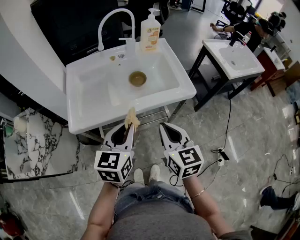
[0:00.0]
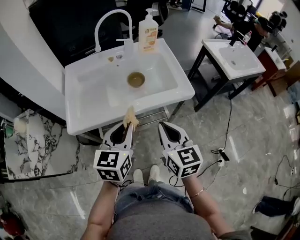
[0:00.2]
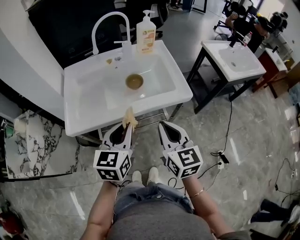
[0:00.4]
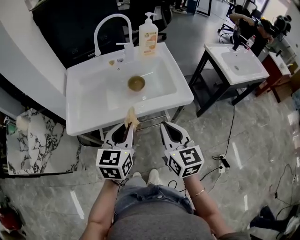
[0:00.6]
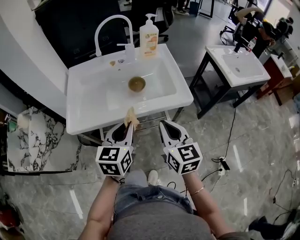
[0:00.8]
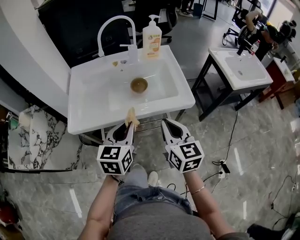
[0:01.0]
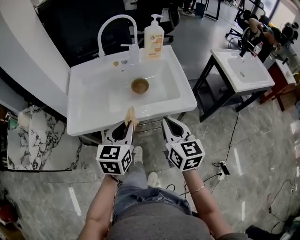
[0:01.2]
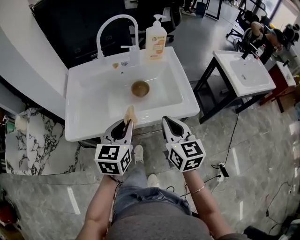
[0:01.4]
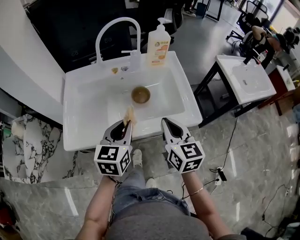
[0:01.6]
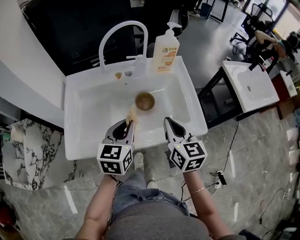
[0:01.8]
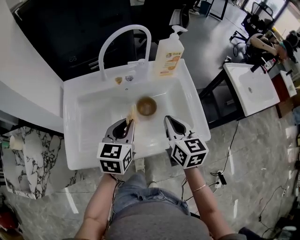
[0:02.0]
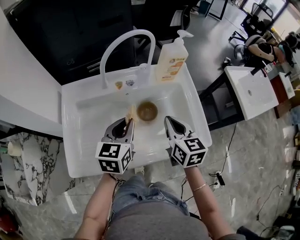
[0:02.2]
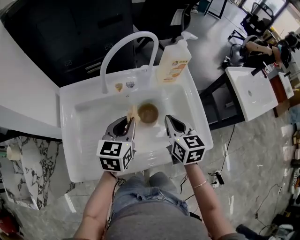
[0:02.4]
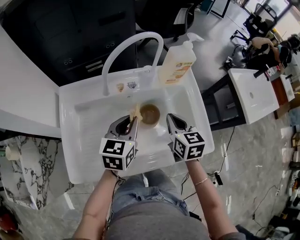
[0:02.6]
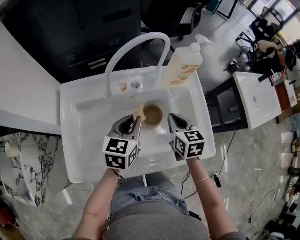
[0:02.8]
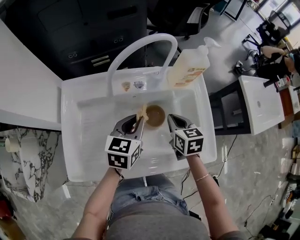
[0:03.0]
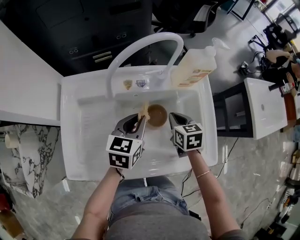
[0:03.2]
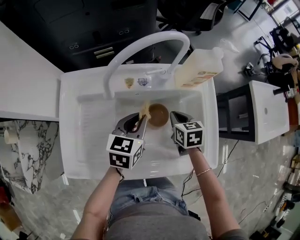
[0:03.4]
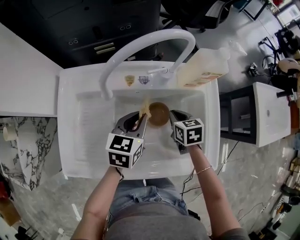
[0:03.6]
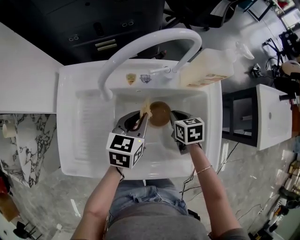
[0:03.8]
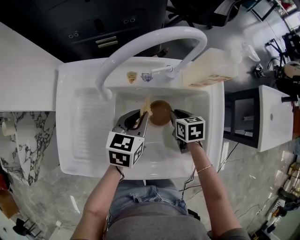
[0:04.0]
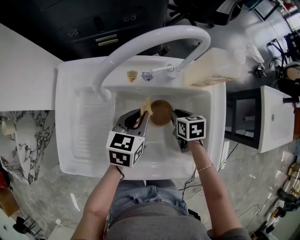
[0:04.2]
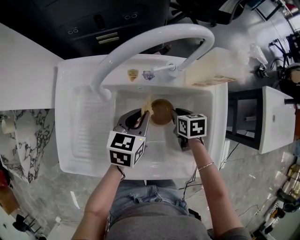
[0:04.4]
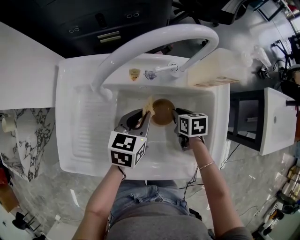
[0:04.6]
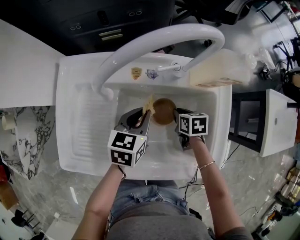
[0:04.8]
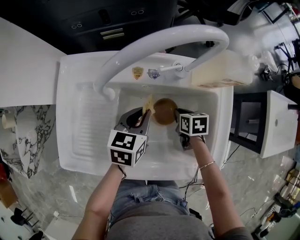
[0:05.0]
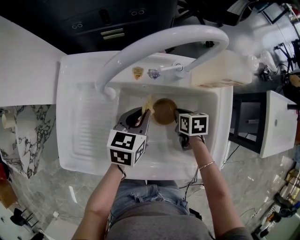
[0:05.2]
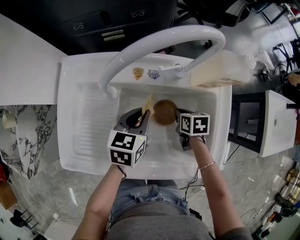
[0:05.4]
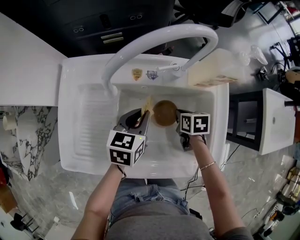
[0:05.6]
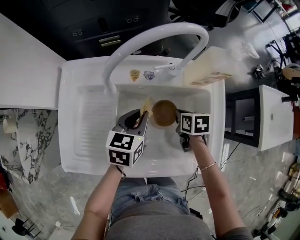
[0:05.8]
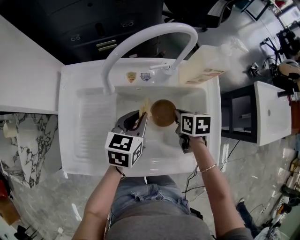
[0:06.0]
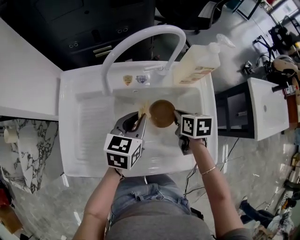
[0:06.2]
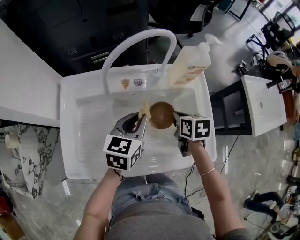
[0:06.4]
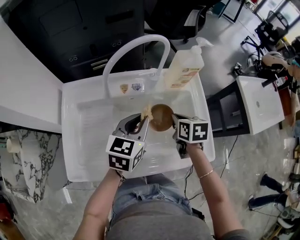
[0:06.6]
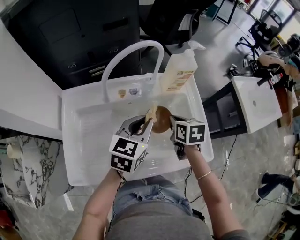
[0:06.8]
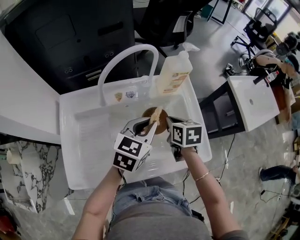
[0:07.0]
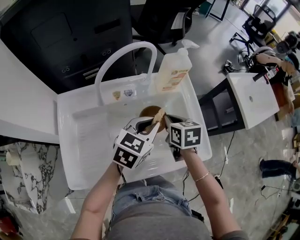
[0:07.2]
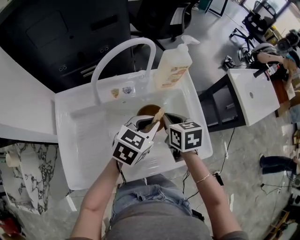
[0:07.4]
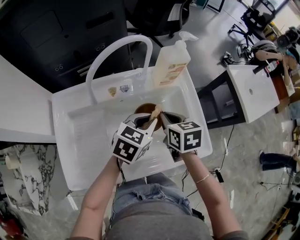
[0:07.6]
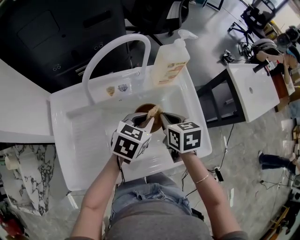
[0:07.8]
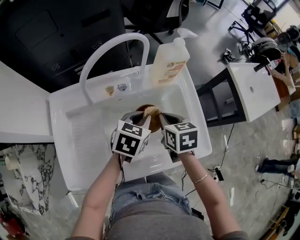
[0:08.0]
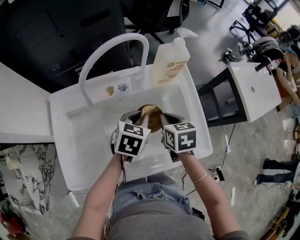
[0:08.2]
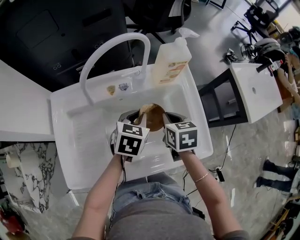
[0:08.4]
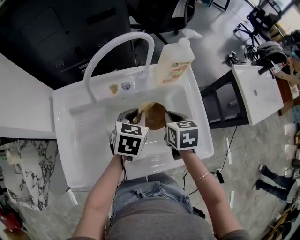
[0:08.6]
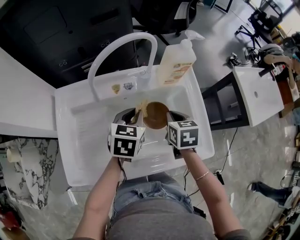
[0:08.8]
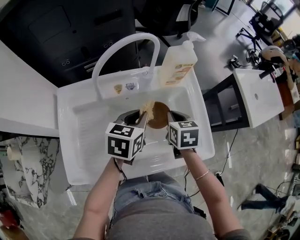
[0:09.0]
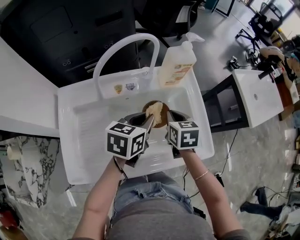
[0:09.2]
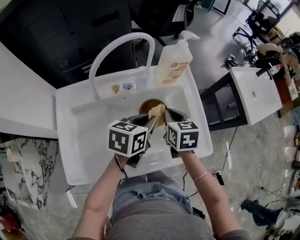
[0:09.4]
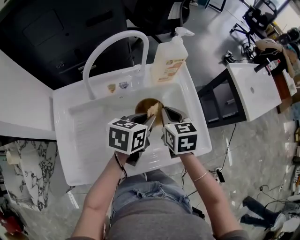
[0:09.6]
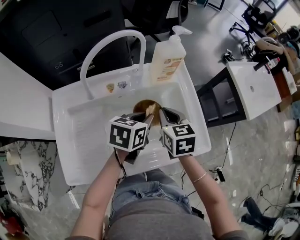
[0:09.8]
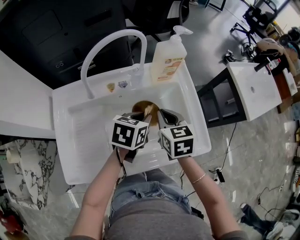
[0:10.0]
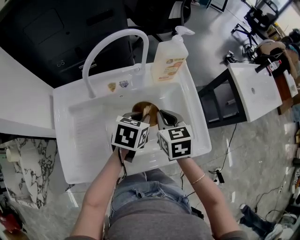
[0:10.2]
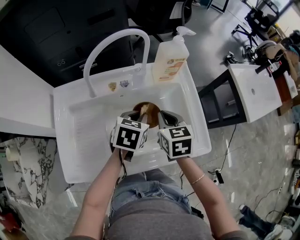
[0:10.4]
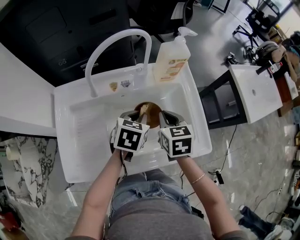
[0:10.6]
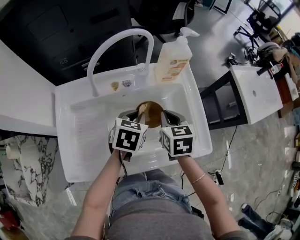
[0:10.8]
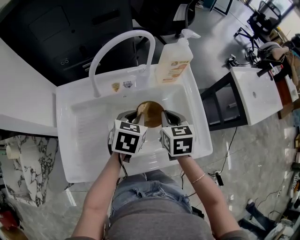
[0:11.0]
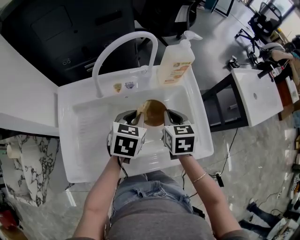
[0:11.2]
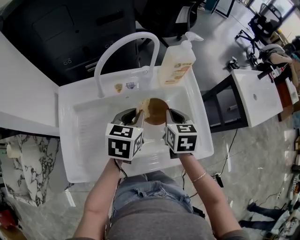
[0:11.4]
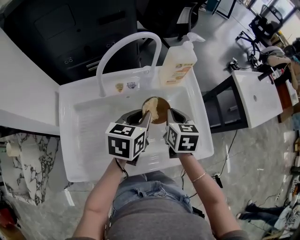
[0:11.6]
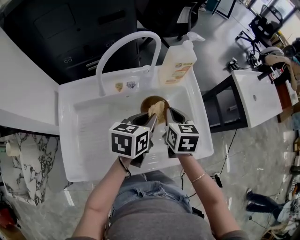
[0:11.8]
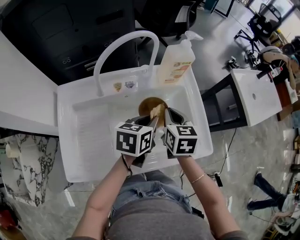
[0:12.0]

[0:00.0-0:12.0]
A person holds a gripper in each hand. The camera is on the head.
0:00.0 to 0:01.6: Both grippers move forward, some 15 cm.
0:01.6 to 0:03.0: The right gripper shifts about 25 cm forward and downward, and rotates about 20 degrees; the left gripper shifts about 20 cm forward.
0:03.0 to 0:04.4: The right gripper is displaced downward by roughly 15 cm, and changes its angle by roughly 20 degrees. The left gripper shifts some 5 cm downward.
0:04.4 to 0:06.0: The right gripper travels upward by some 5 cm.
0:06.0 to 0:07.6: The left gripper goes approximately 10 cm to the right, and rotates about 30 degrees, while the right gripper goes roughly 10 cm upward.
0:07.6 to 0:09.0: The left gripper shifts about 5 cm to the left.
0:09.0 to 0:10.4: The grippers move only a little.

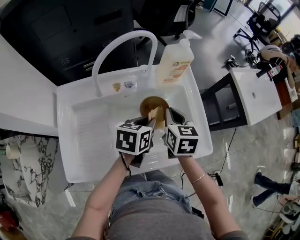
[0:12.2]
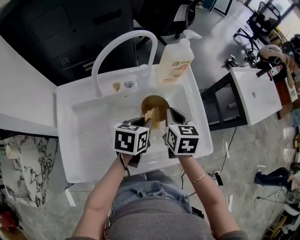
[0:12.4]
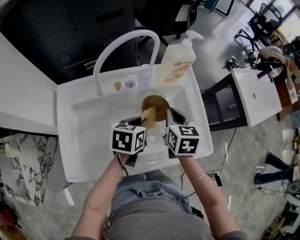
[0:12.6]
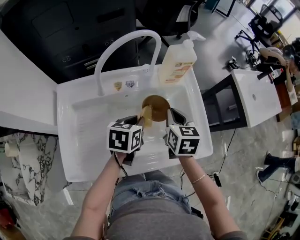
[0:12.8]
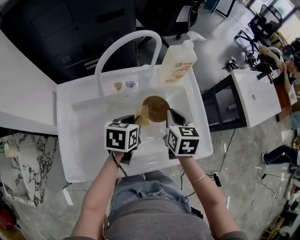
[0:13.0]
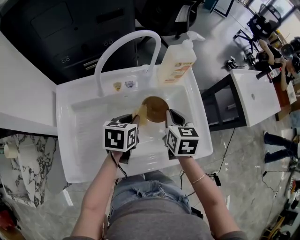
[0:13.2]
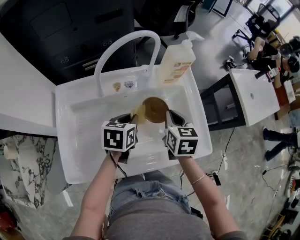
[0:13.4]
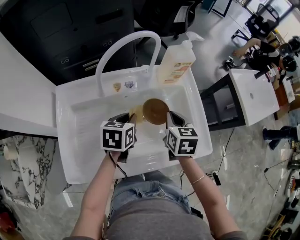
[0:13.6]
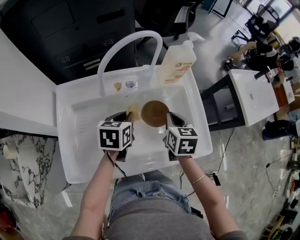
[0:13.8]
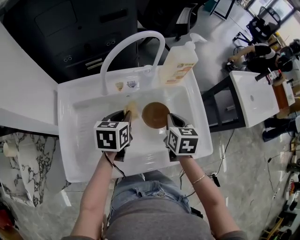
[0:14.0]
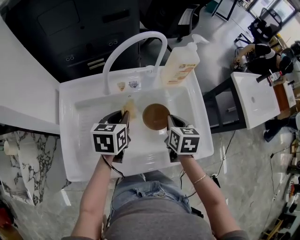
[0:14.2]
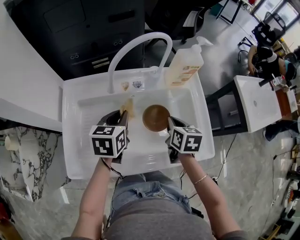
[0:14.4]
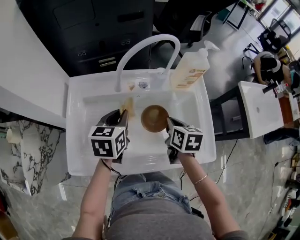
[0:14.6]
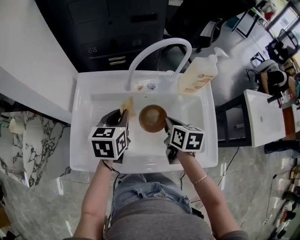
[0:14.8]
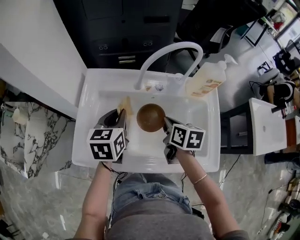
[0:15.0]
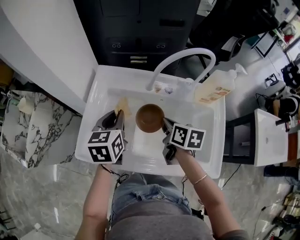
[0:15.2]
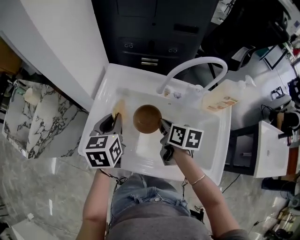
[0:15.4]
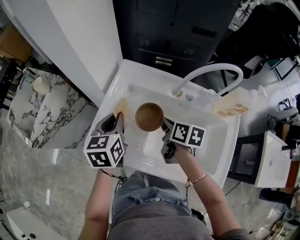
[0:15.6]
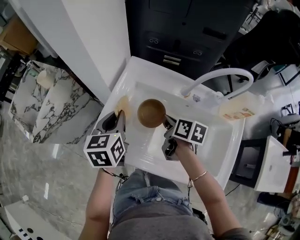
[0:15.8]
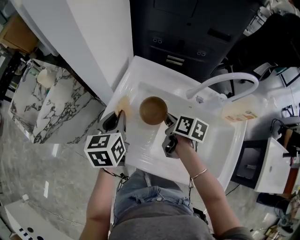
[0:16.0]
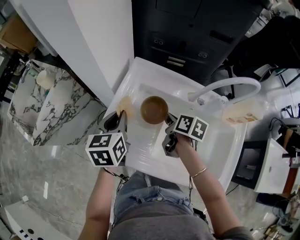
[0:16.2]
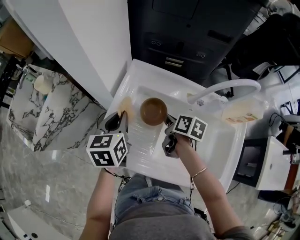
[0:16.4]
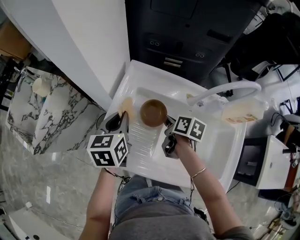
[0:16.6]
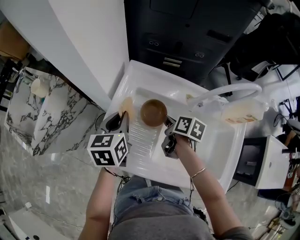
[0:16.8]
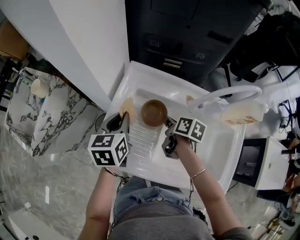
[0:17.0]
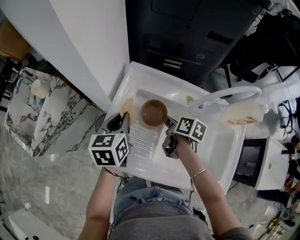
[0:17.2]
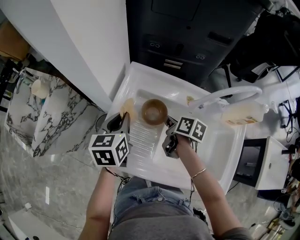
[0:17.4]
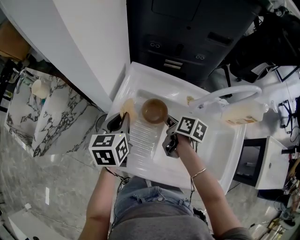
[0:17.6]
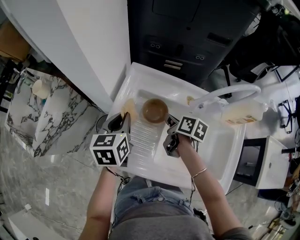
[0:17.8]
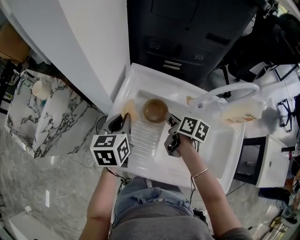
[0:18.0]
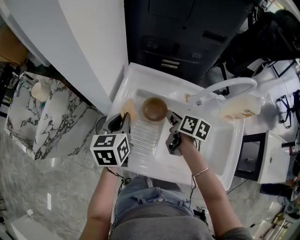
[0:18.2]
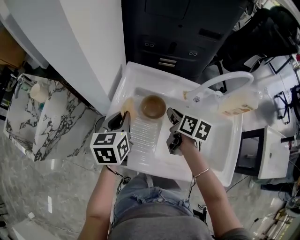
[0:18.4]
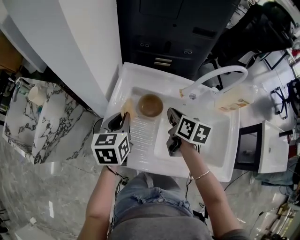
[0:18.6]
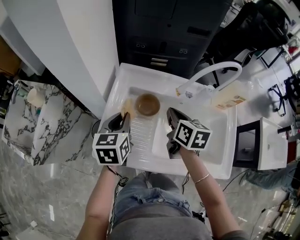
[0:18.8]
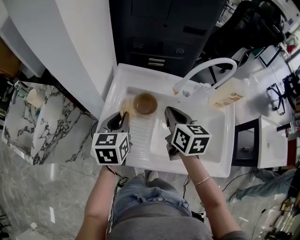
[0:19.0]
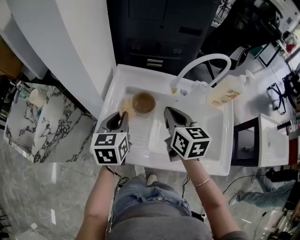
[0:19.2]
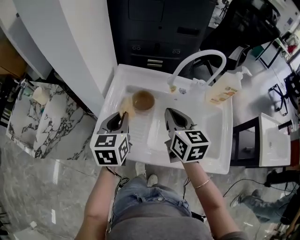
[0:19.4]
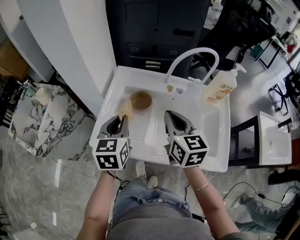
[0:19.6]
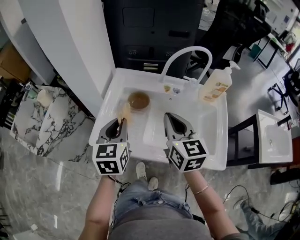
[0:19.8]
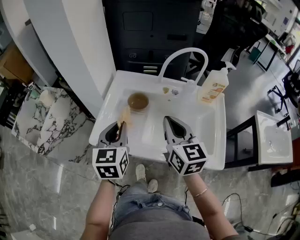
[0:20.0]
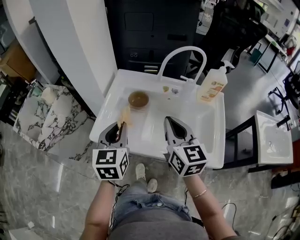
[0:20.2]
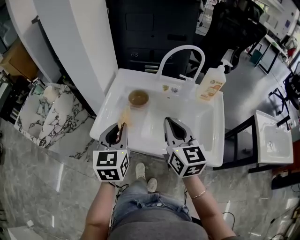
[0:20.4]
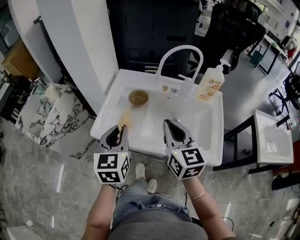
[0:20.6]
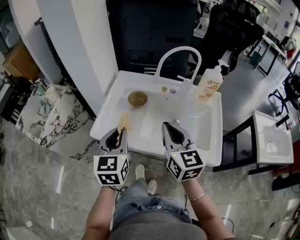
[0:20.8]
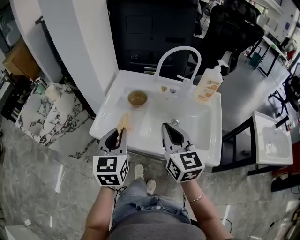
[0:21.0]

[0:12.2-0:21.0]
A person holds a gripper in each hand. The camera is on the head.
0:12.2 to 0:13.6: The left gripper travels to the left by roughly 10 cm.
0:13.6 to 0:15.2: The left gripper ends up roughly 20 cm from where it was, and rotates about 40 degrees; the right gripper moves roughly 15 cm, and changes its angle by some 30 degrees.
0:15.2 to 0:16.6: The right gripper shifts roughly 15 cm to the left, forward and downward, while the left gripper travels to the left by approximately 10 cm.
0:16.6 to 0:18.0: The grippers make only small movements.
0:18.0 to 0:19.6: The right gripper goes about 20 cm upward and backward, and turns by roughly 50 degrees. The left gripper heads backward and upward, covering roughly 10 cm.
0:19.6 to 0:21.0: Both grippers move backward, approximately 15 cm.

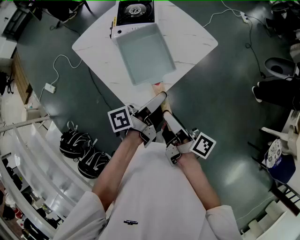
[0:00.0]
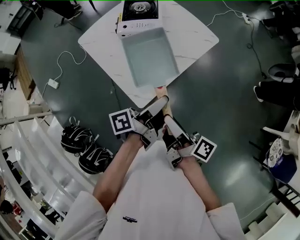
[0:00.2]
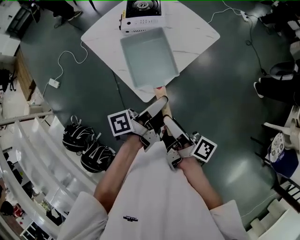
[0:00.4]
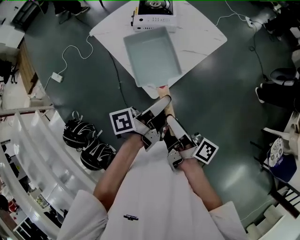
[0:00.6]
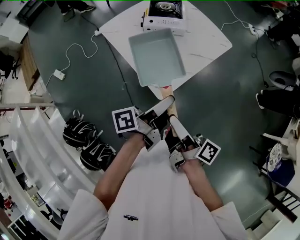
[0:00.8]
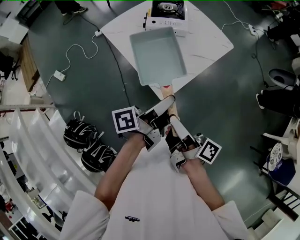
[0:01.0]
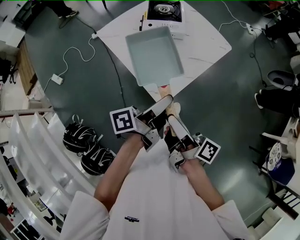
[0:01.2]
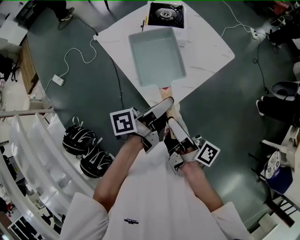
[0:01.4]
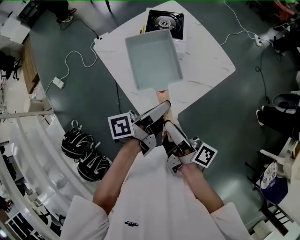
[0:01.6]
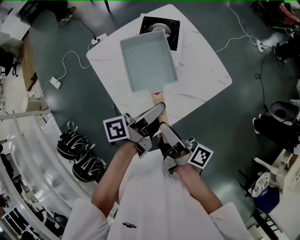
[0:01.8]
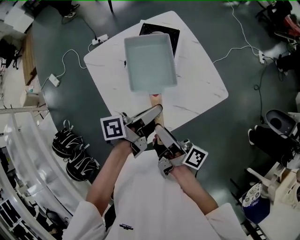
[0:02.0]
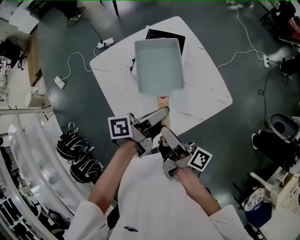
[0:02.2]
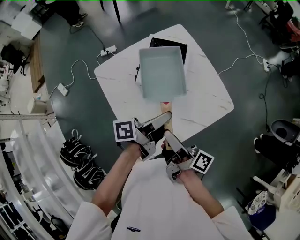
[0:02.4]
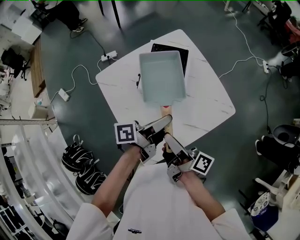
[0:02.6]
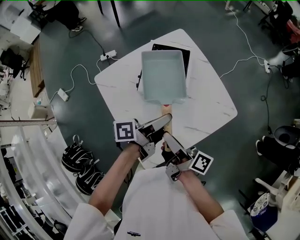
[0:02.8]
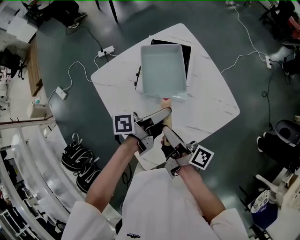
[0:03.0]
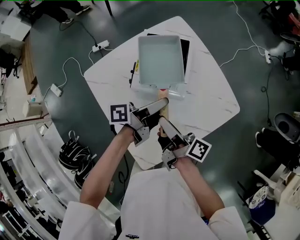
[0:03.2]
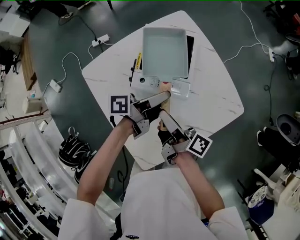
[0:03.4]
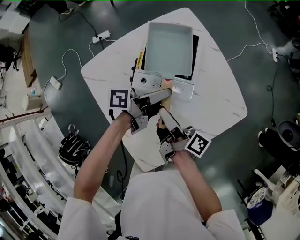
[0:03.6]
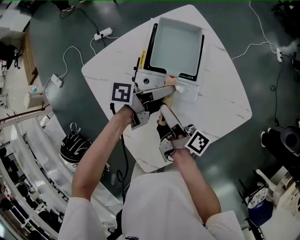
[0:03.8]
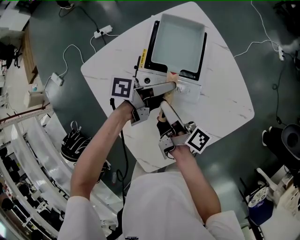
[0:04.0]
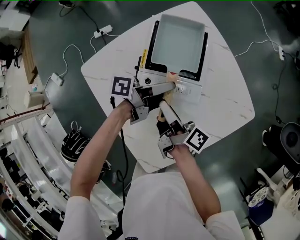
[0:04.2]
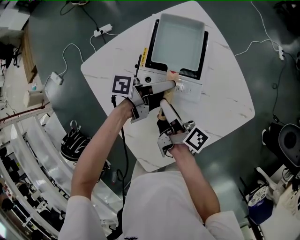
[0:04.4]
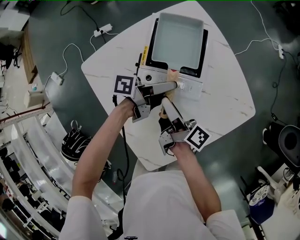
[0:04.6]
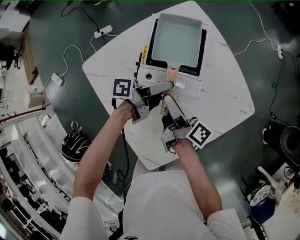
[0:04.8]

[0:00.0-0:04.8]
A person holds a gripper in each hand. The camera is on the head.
0:00.0 to 0:01.6: Both grippers travel together to the left, roughly 10 cm. The left gripper goes backward and returns, about 15 cm each way, while the right gripper goes backward and returns, some 15 cm each way.
0:01.6 to 0:03.2: The grippers both shift forward by roughly 25 cm.
0:03.2 to 0:04.8: The grippers both shift downward and forward by some 10 cm. The left gripper opens up, while the right gripper opens its fingers.
